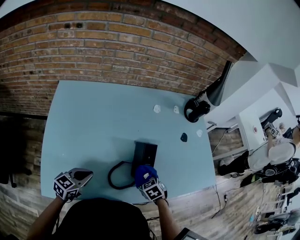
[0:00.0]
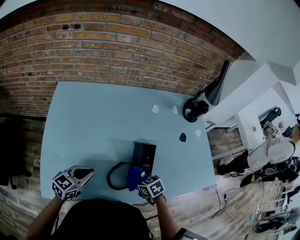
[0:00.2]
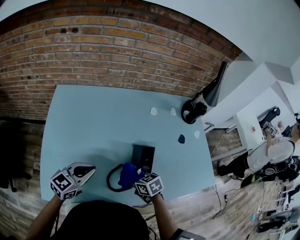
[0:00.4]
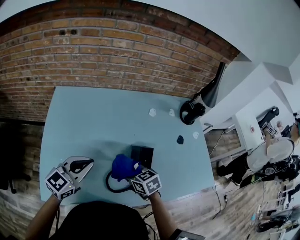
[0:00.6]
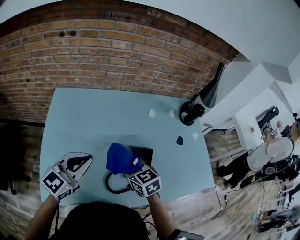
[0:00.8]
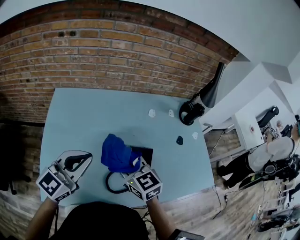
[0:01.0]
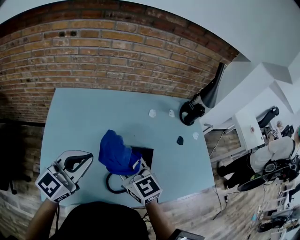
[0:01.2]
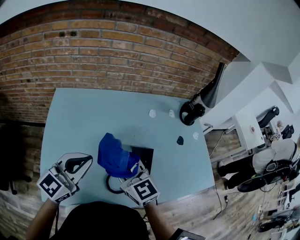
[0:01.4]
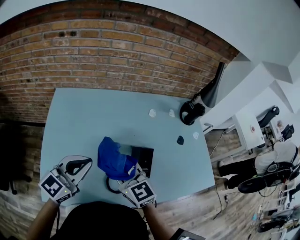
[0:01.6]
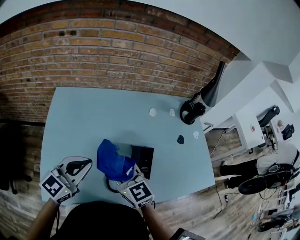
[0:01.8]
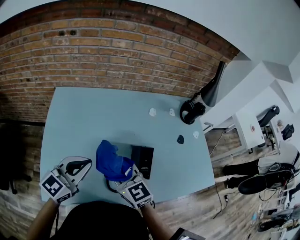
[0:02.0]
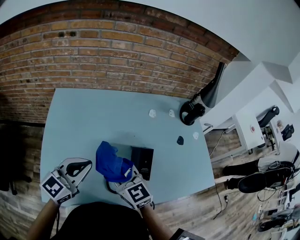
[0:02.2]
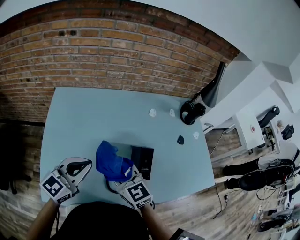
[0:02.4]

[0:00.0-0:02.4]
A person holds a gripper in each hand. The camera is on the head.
0:00.0 to 0:01.2: The left gripper is displaced upward by roughly 25 cm, and turns by about 30 degrees; the right gripper moves upward and to the left, about 30 cm, and points its fingers some 50 degrees further upward.
0:01.2 to 0:02.4: The right gripper ends up about 5 cm from where it was. Meanwhile the left gripper travels downward by some 5 cm.

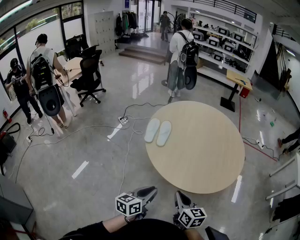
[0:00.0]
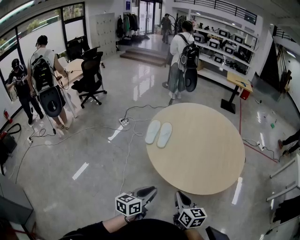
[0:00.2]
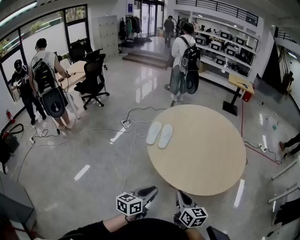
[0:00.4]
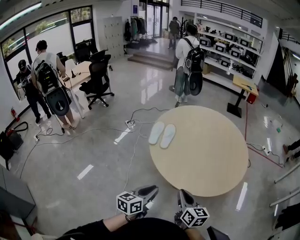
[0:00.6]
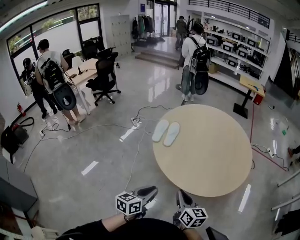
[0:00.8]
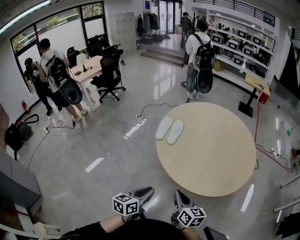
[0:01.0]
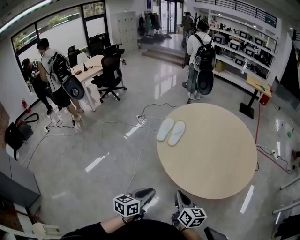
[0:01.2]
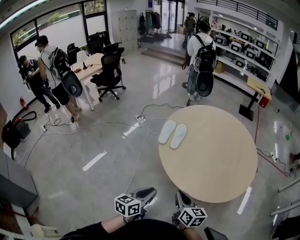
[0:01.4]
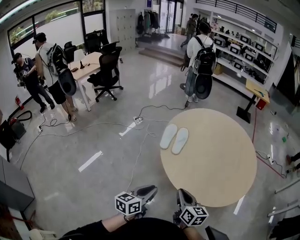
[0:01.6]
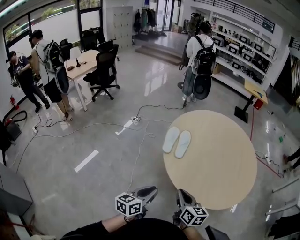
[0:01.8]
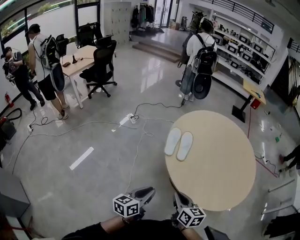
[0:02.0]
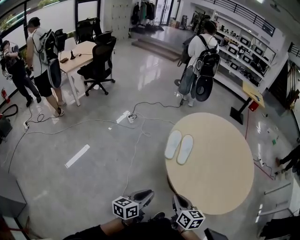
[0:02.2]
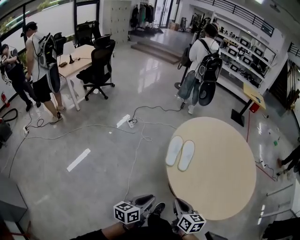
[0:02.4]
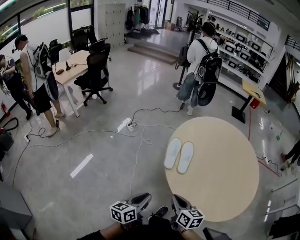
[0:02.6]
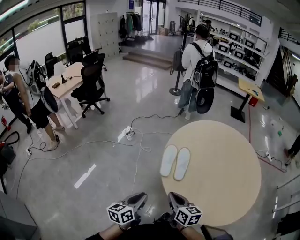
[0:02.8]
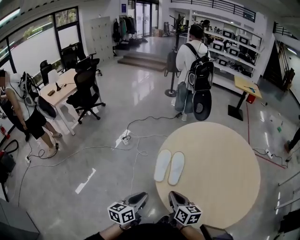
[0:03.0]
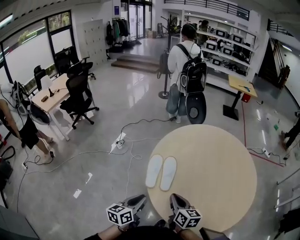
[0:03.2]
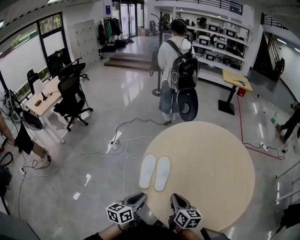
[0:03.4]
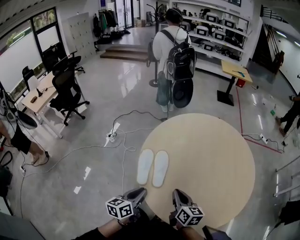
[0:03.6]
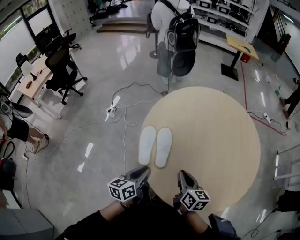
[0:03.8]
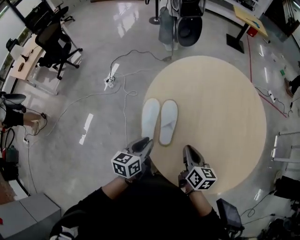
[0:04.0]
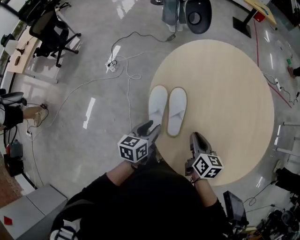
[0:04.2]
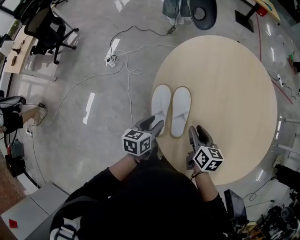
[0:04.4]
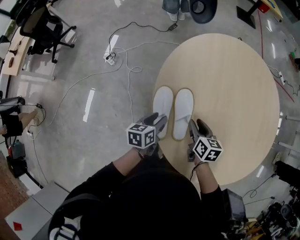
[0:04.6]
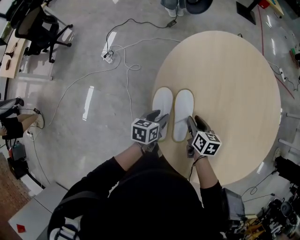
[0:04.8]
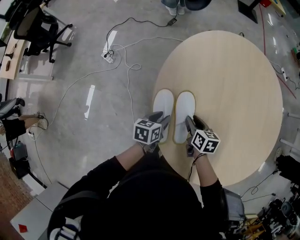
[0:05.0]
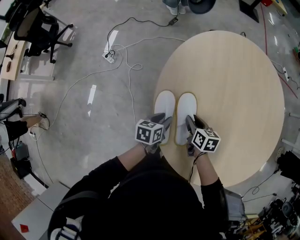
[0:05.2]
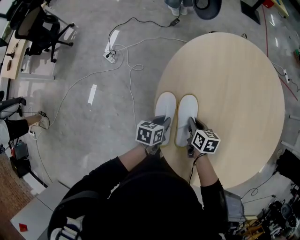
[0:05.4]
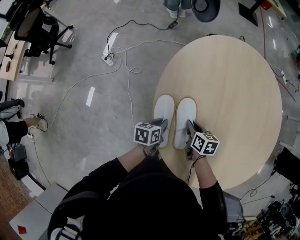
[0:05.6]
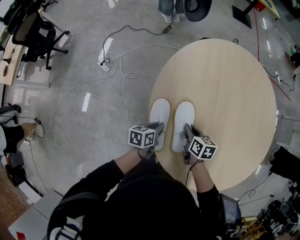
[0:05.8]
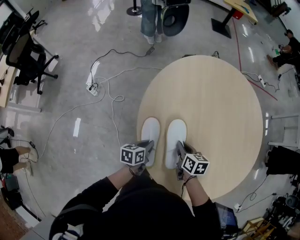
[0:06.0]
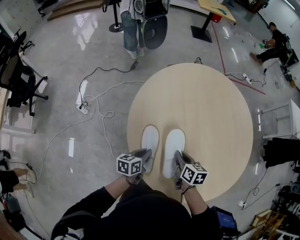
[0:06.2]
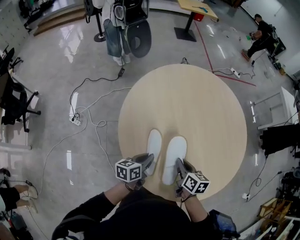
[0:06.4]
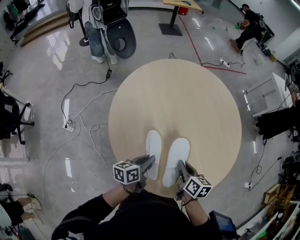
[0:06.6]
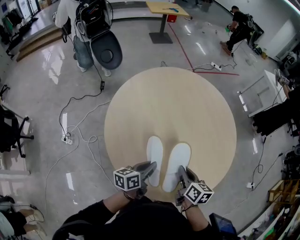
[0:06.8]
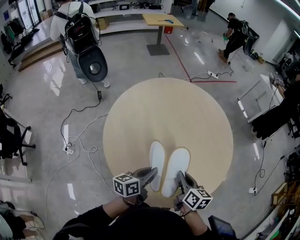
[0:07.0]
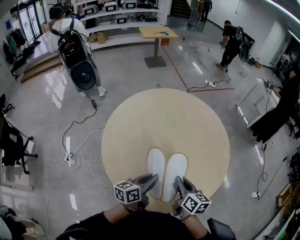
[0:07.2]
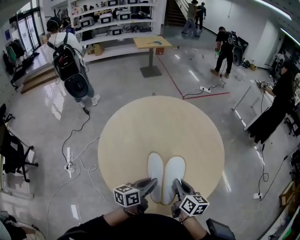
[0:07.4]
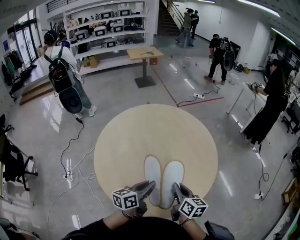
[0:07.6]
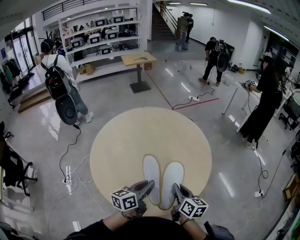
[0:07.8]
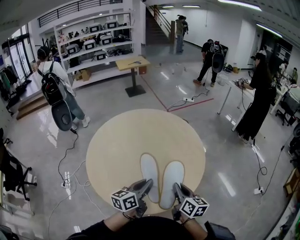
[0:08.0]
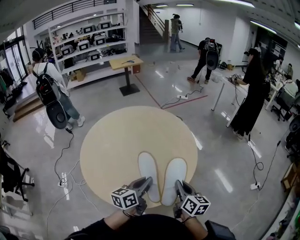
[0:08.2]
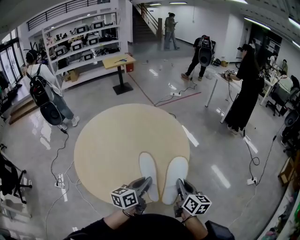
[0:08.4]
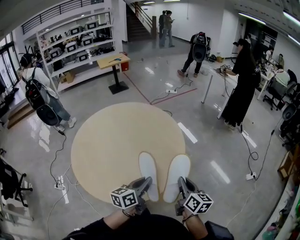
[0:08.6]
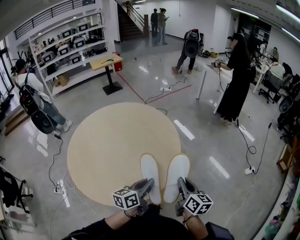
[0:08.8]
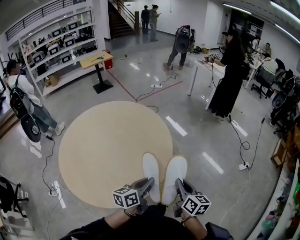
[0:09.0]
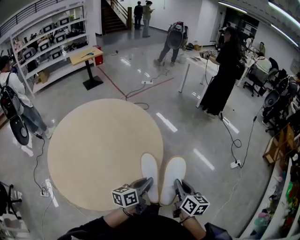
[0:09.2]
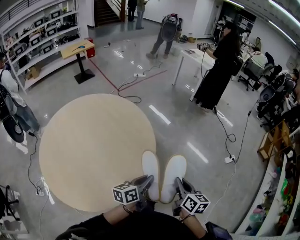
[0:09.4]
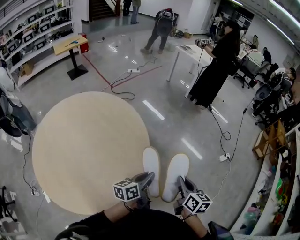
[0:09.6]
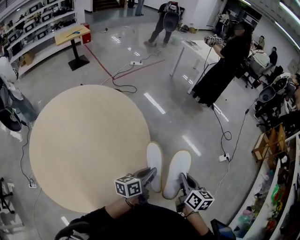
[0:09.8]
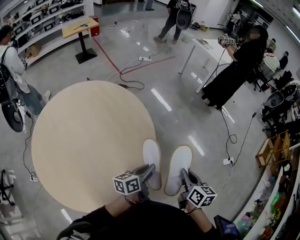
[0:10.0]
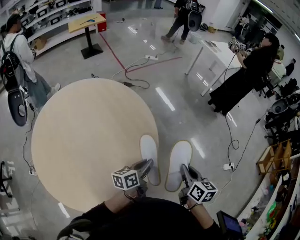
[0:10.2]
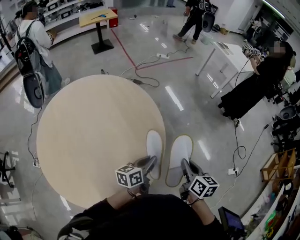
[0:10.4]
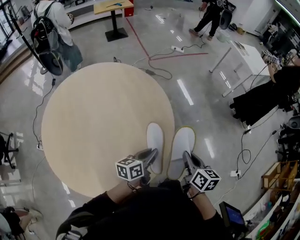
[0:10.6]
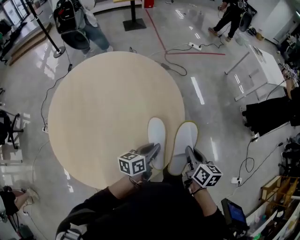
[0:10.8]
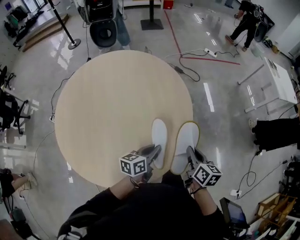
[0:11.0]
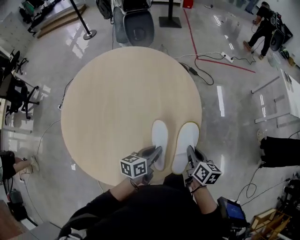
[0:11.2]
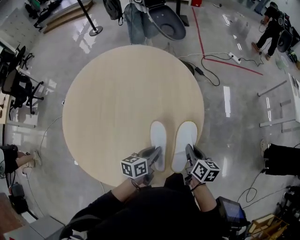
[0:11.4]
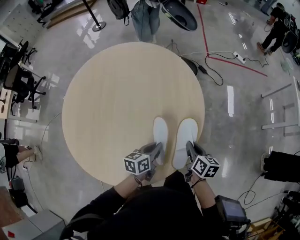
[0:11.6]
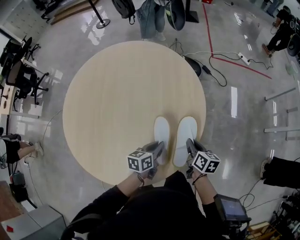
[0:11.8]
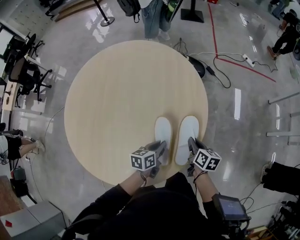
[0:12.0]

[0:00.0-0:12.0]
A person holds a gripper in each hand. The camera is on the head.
0:00.0 to 0:01.6: The left gripper shifts some 5 cm to the left. The right gripper is displaced forward and to the left by about 10 cm.
0:01.6 to 0:03.0: Both grippers move forward and to the left, some 25 cm.
0:03.0 to 0:04.4: The two grippers go approximately 30 cm forward and downward. The left gripper turns by some 20 degrees, and opens up; the right gripper swivels about 20 degrees, and opens.
0:04.4 to 0:06.0: The grippers both shift downward and forward by some 10 cm. The right gripper closes up. The left gripper closes up.
0:06.0 to 0:07.6: The right gripper shifts by about 40 cm, and swivels some 40 degrees, while the left gripper shifts by approximately 40 cm, and rotates roughly 40 degrees.
0:07.6 to 0:09.0: Both grippers travel together to the right, approximately 30 cm.
0:09.0 to 0:10.4: Both grippers travel together forward, approximately 35 cm.
0:10.4 to 0:12.0: The left gripper moves roughly 25 cm, and rotates about 40 degrees, while the right gripper changes place by roughly 40 cm, and swivels approximately 40 degrees.

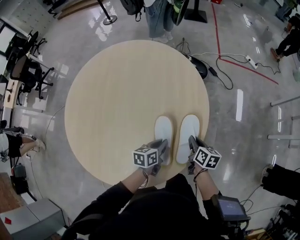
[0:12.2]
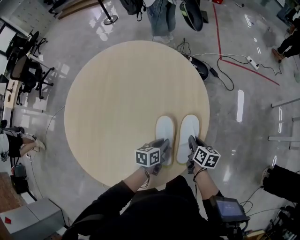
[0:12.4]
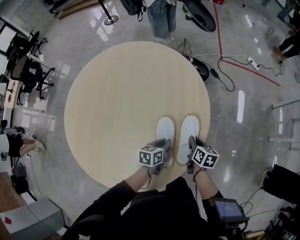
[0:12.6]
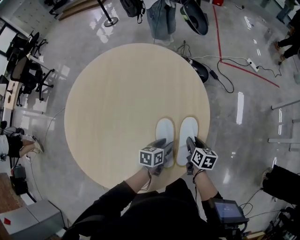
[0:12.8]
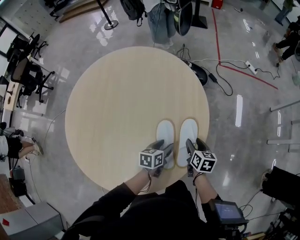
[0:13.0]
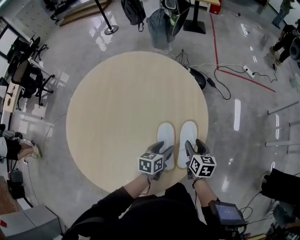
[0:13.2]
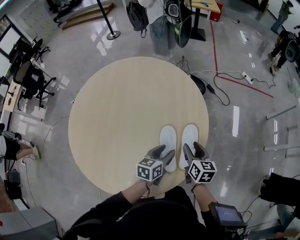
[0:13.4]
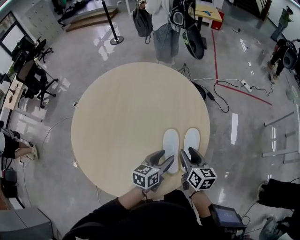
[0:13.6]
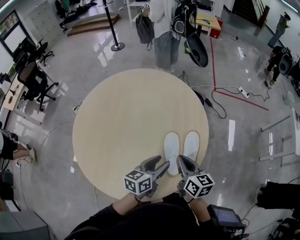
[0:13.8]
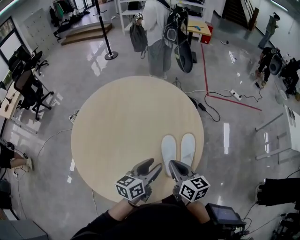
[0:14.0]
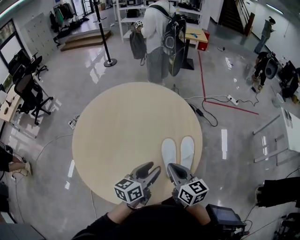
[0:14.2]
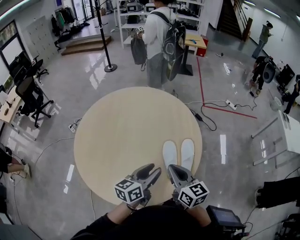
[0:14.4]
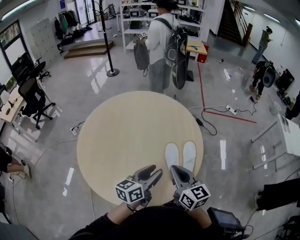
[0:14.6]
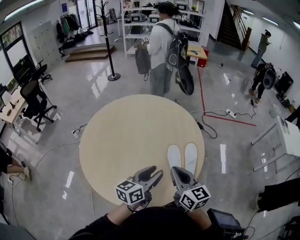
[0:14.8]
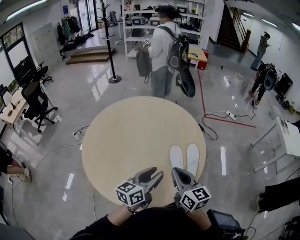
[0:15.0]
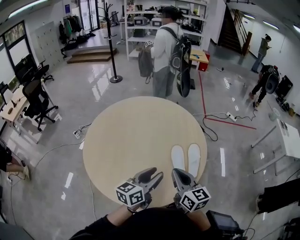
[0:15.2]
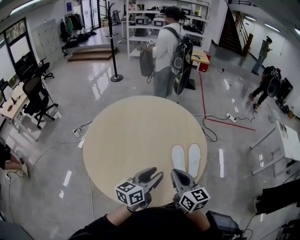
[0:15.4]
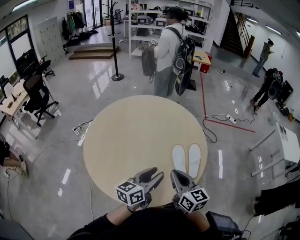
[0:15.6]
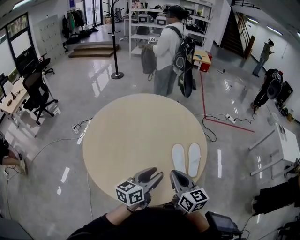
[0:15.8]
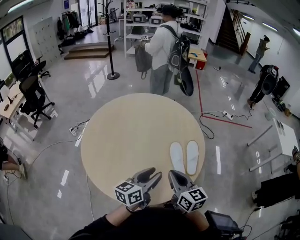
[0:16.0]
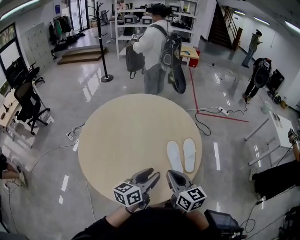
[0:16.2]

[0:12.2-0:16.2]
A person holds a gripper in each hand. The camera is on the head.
0:12.2 to 0:13.6: The left gripper travels upward by some 15 cm, and opens up. Meanwhile the right gripper travels upward and to the left by some 15 cm, swivels some 20 degrees, and opens.
0:13.6 to 0:14.8: The two grippers go about 30 cm backward, upward and to the left. The right gripper changes its angle by about 20 degrees, and closes its fingers.
0:14.8 to 0:16.2: The right gripper goes about 10 cm backward and to the left. The left gripper moves backward, approximately 5 cm.

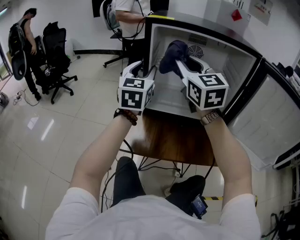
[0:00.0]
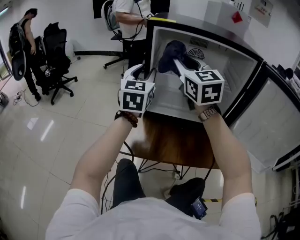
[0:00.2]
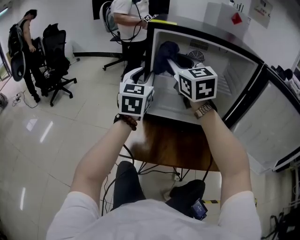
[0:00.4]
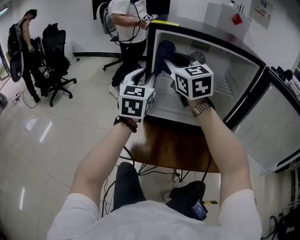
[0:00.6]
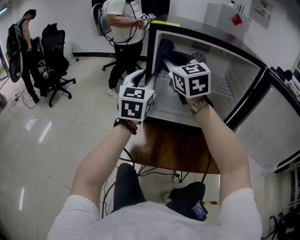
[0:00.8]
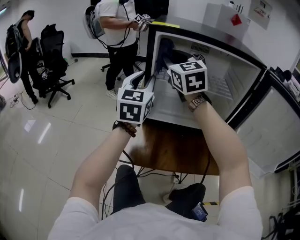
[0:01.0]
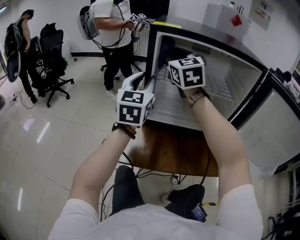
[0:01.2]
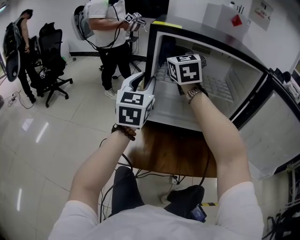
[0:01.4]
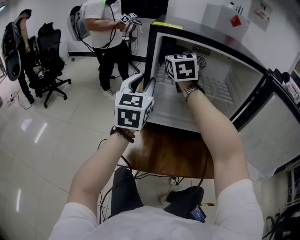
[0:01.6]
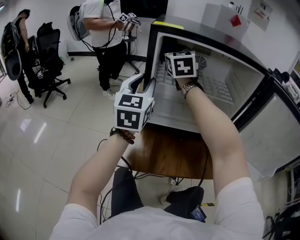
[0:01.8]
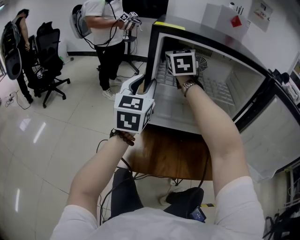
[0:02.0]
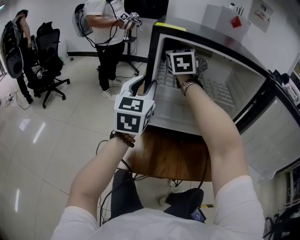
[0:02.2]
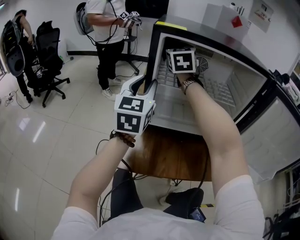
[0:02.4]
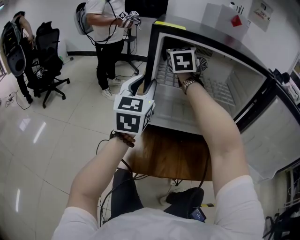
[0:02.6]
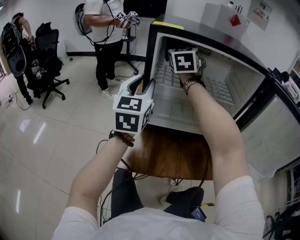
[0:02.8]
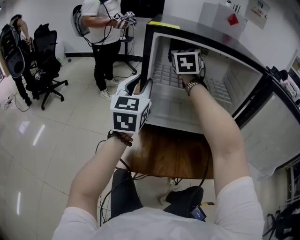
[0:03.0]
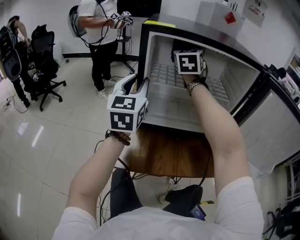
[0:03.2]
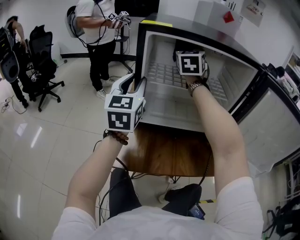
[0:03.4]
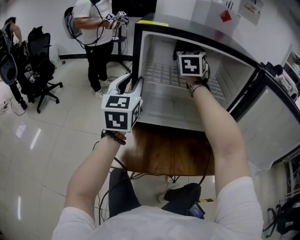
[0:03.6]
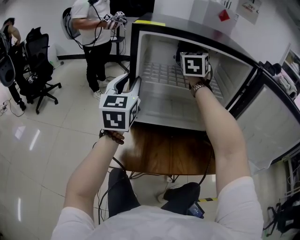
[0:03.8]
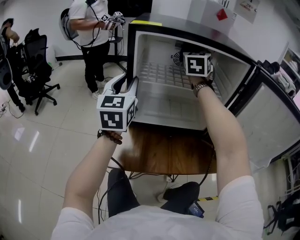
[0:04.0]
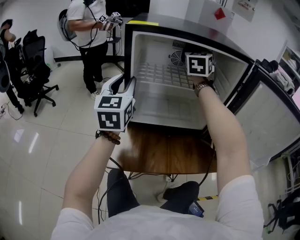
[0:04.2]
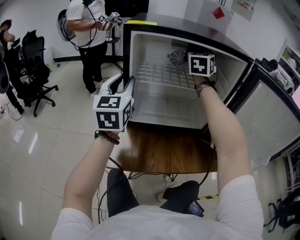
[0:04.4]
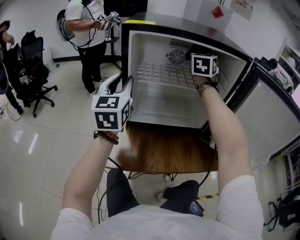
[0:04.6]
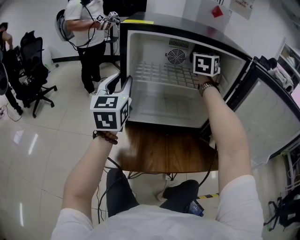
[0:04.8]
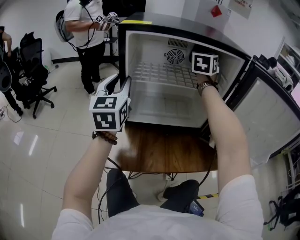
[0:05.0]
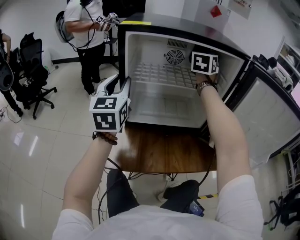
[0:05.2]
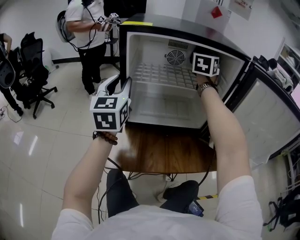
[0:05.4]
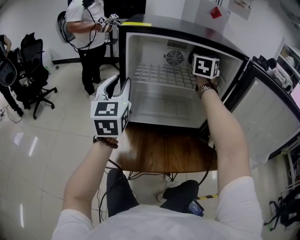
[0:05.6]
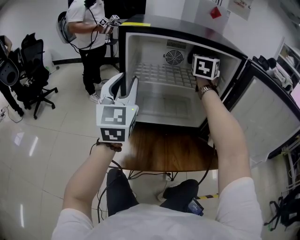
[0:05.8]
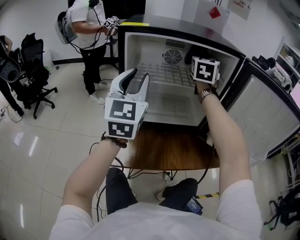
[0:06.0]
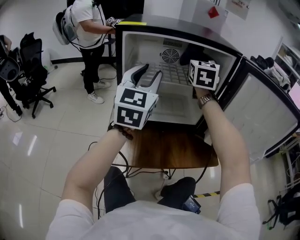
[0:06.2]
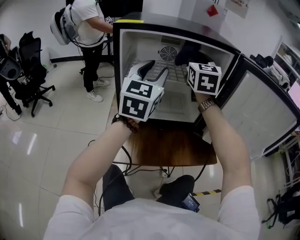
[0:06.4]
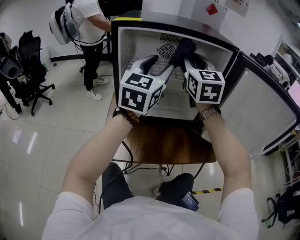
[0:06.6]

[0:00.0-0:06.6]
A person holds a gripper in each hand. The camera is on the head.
0:00.0 to 0:01.6: The right gripper moves forward, some 15 cm.
0:01.6 to 0:03.2: The right gripper travels to the right by about 10 cm.
0:03.2 to 0:05.0: The right gripper heads to the right, covering about 15 cm, and changes its angle by approximately 20 degrees.
0:05.0 to 0:06.6: The right gripper is displaced backward by some 15 cm, and rotates some 30 degrees. The left gripper goes approximately 15 cm to the right and upward, and turns by approximately 20 degrees.
